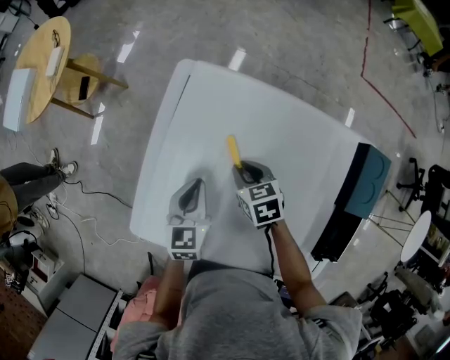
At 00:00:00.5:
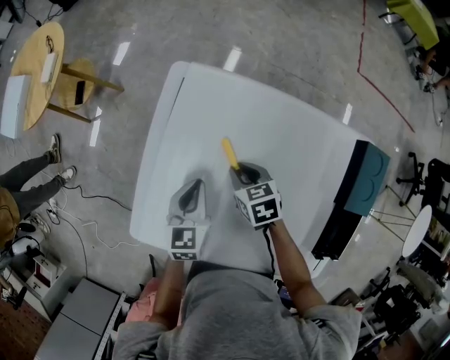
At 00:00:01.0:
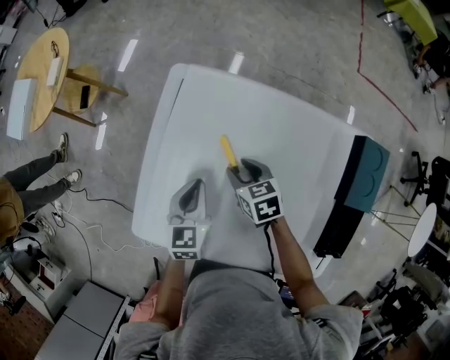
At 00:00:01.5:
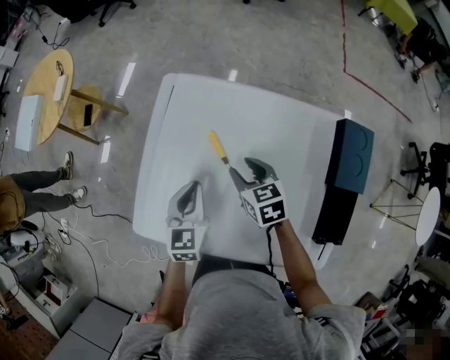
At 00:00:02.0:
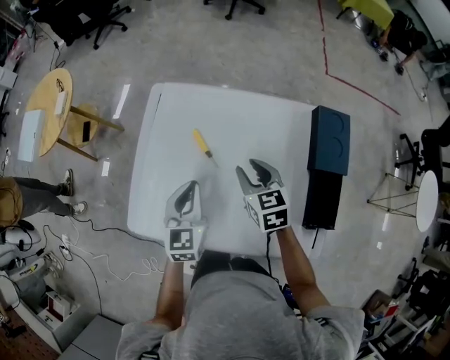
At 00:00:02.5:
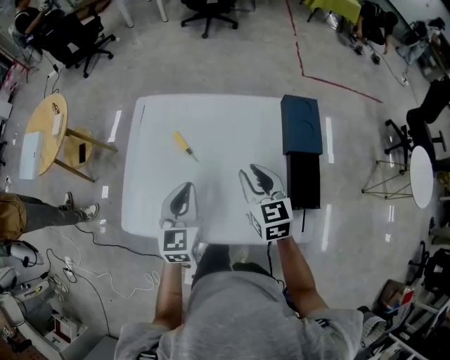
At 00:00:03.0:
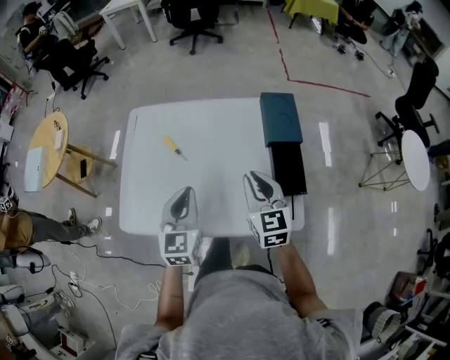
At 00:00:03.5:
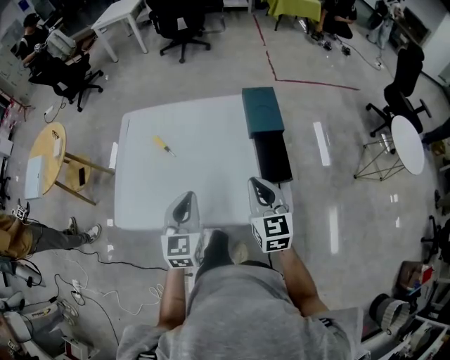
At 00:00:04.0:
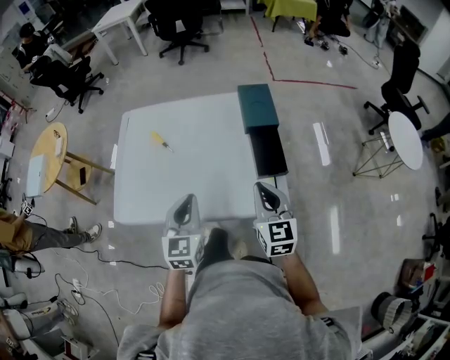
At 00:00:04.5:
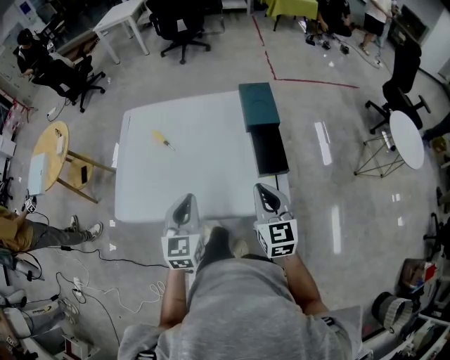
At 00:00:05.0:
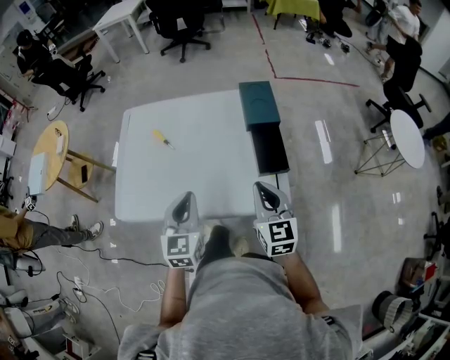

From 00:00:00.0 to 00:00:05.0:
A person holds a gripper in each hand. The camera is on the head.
From 00:00:00.0 to 00:00:02.5: The right gripper heads upward, backward and to the right, covering some 30 cm, and changes its angle by about 40 degrees. The left gripper shifts roughly 25 cm backward, upward and to the right, and rotates about 20 degrees.
From 00:00:02.5 to 00:00:05.0: The two grippers go some 20 cm backward and to the right. The right gripper closes.

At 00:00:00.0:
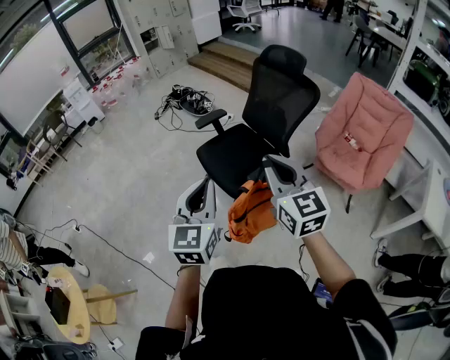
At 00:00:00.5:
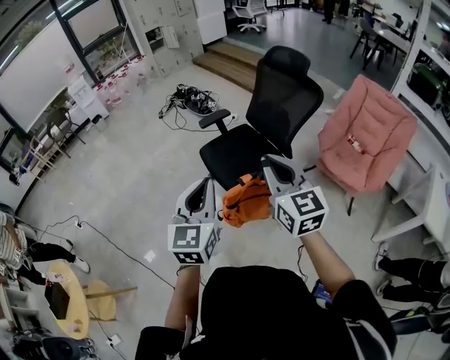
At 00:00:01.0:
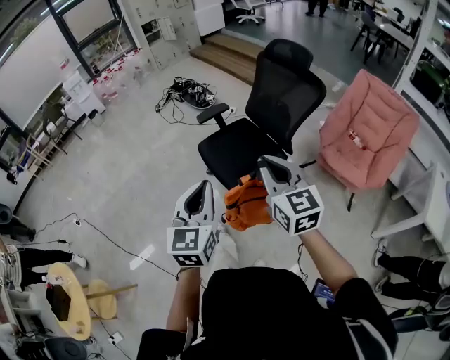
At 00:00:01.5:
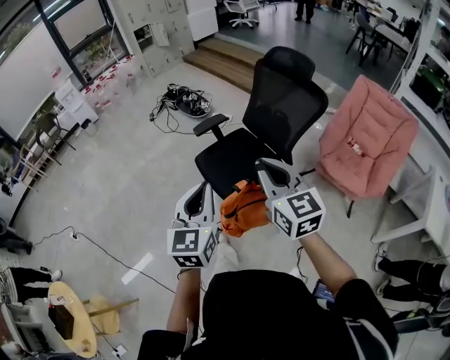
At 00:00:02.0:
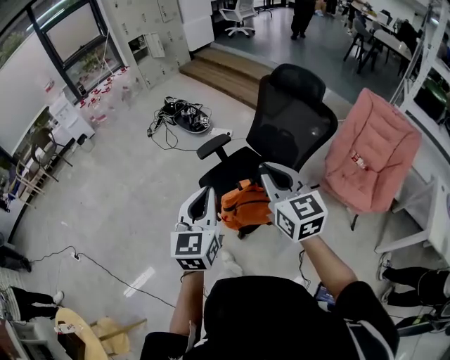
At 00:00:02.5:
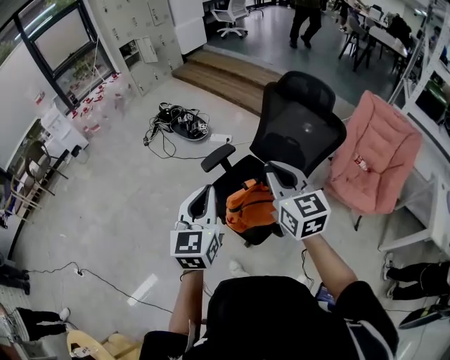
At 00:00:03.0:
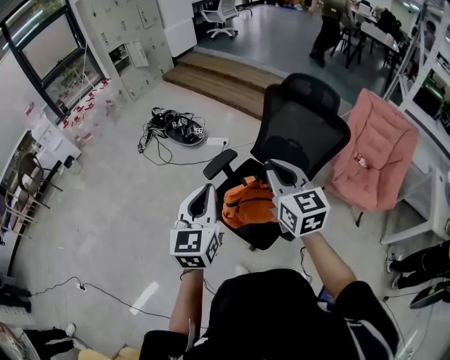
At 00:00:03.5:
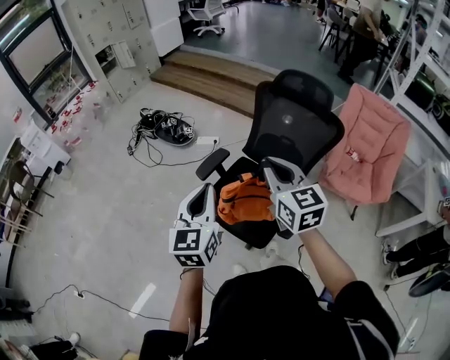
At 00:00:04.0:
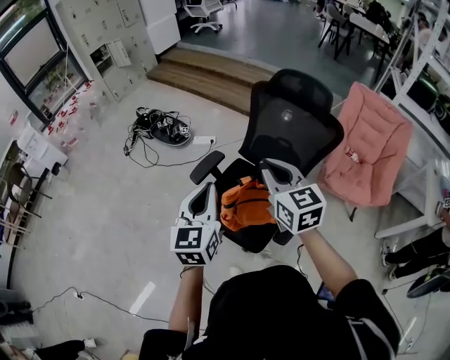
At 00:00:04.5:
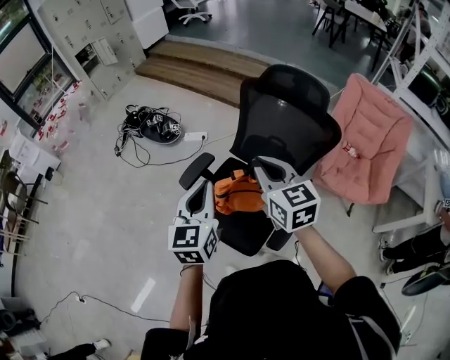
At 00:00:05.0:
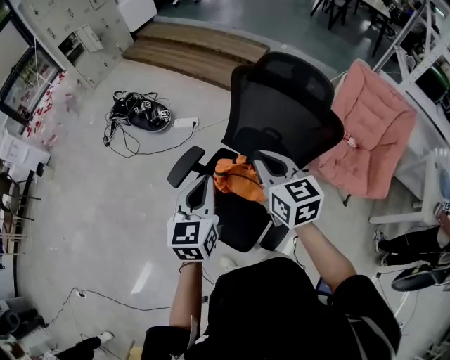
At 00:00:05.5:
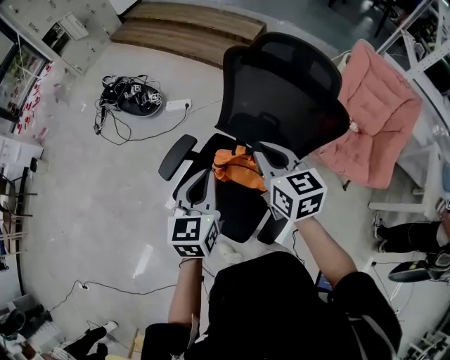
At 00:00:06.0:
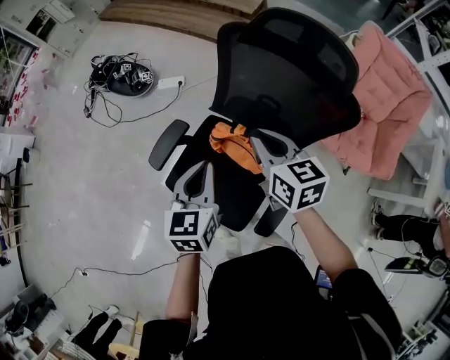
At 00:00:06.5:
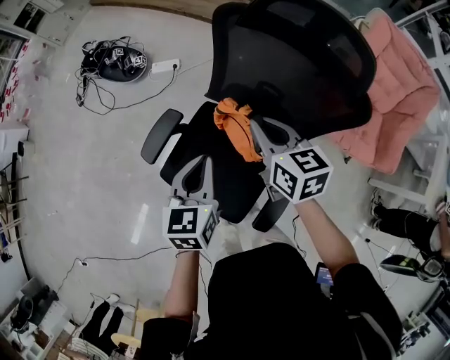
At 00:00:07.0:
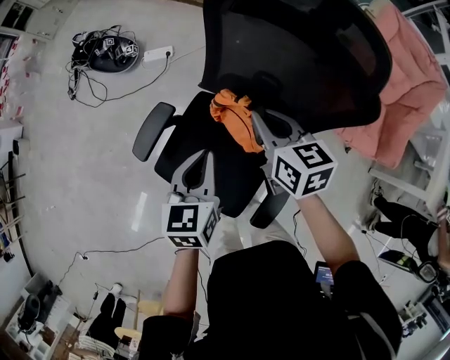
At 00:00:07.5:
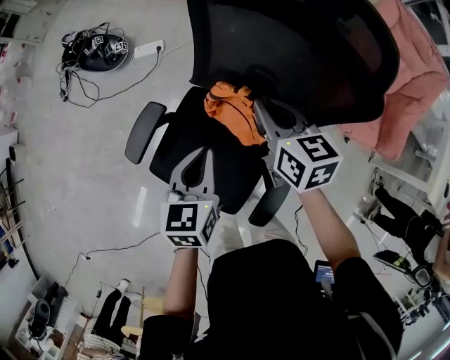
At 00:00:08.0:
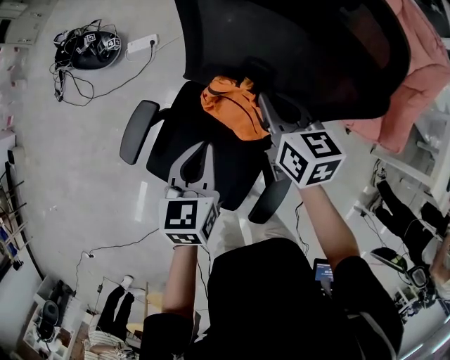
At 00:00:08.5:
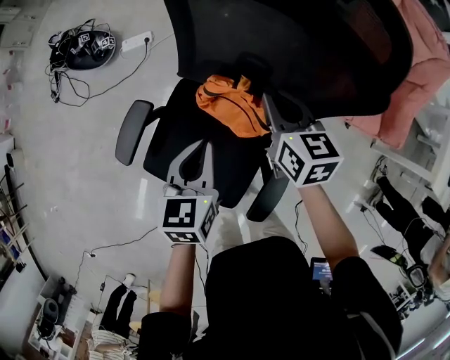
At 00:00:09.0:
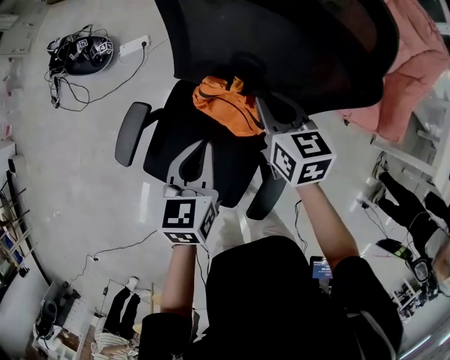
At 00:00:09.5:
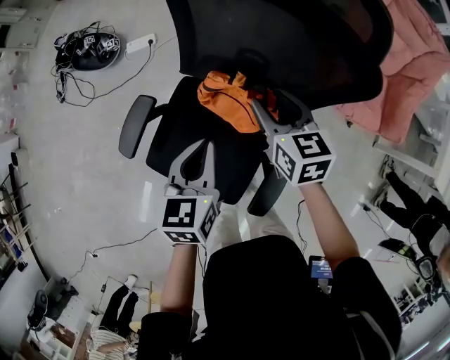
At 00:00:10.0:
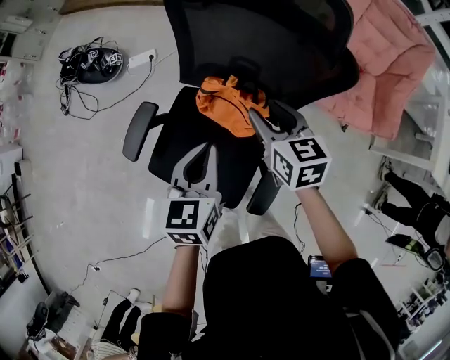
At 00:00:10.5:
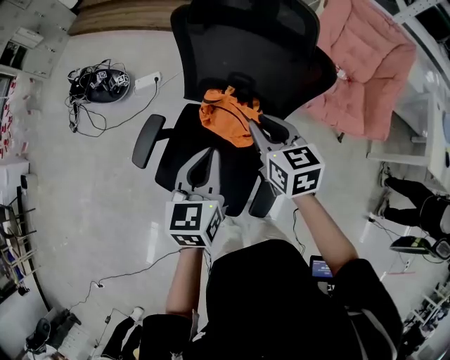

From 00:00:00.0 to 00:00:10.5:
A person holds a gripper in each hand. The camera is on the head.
From 00:00:00.0 to 00:00:02.0: Both grippers travel together forward, roughly 25 cm.
From 00:00:02.0 to 00:00:04.0: The grippers both shift forward by some 20 cm.
From 00:00:04.0 to 00:00:06.5: Both grippers travel together forward, downward and to the right, roughly 35 cm. The right gripper turns by approximately 30 degrees. Meanwhile the left gripper swivels some 20 degrees.
From 00:00:06.5 to 00:00:08.5: The left gripper travels downward and to the right by approximately 10 cm; the right gripper is displaced downward, to the right and forward by approximately 15 cm.
From 00:00:08.5 to 00:00:10.5: The right gripper shifts about 15 cm backward and upward, and opens and closes again. Meanwhile the left gripper heads upward and backward, covering about 15 cm.

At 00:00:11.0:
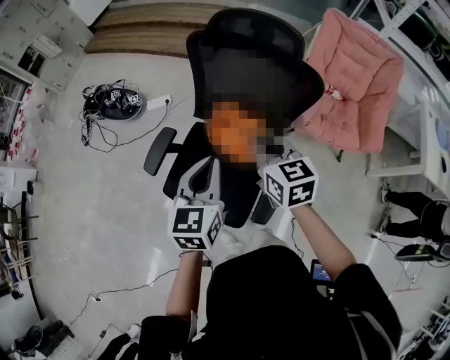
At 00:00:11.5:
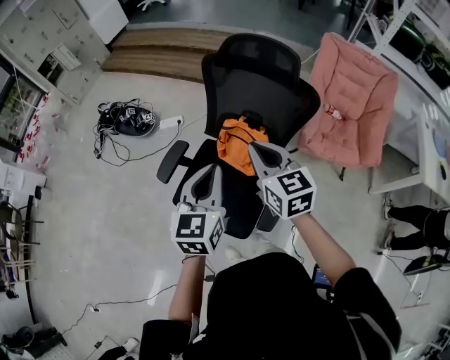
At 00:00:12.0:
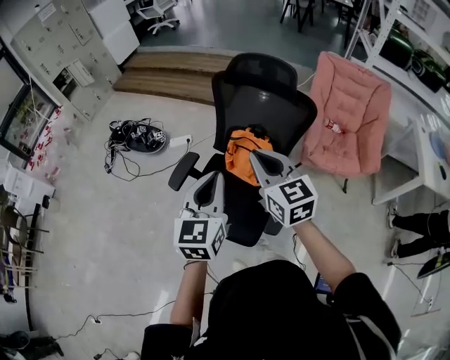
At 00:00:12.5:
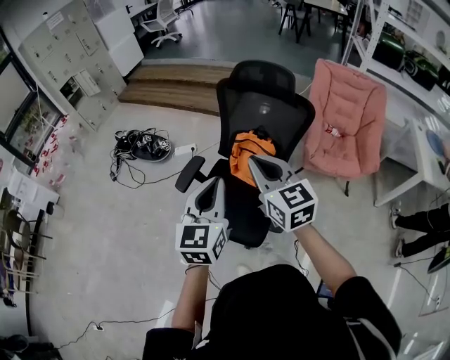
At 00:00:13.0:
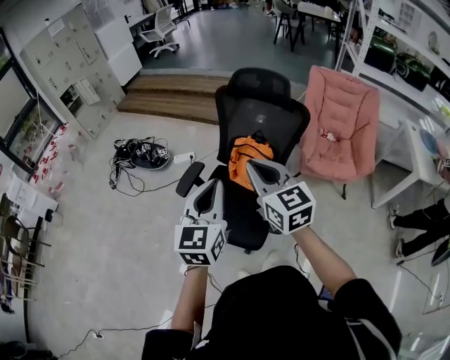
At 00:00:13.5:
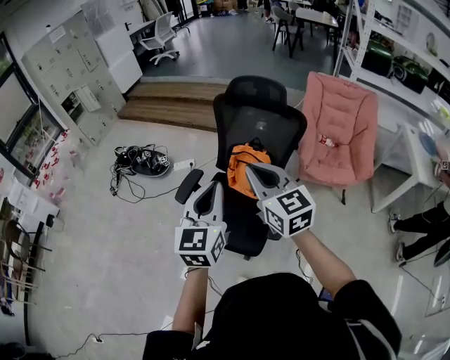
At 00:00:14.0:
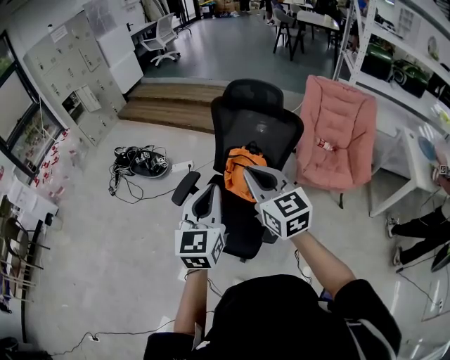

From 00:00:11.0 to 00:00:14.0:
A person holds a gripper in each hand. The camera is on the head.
From 00:00:11.0 to 00:00:12.5: Both grippers move backward, upward and to the left, roughly 25 cm. The right gripper turns by about 20 degrees.
From 00:00:12.5 to 00:00:14.0: The grippers make only small movements.

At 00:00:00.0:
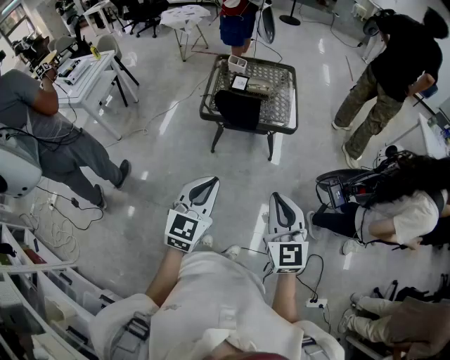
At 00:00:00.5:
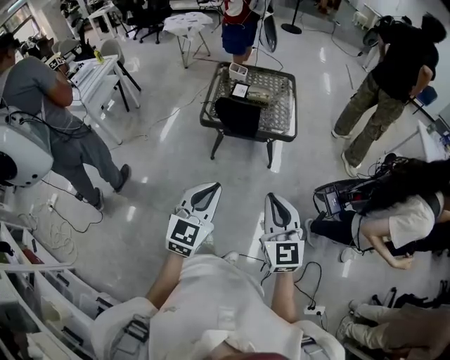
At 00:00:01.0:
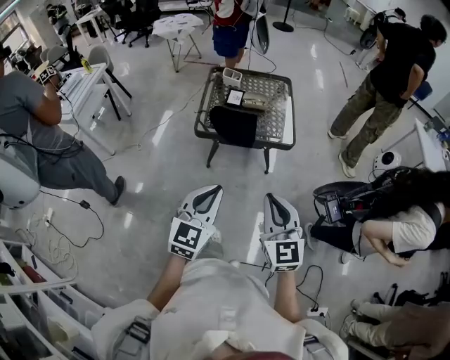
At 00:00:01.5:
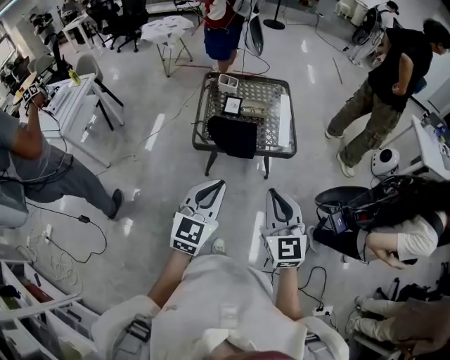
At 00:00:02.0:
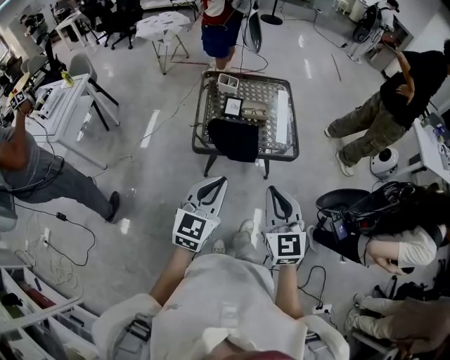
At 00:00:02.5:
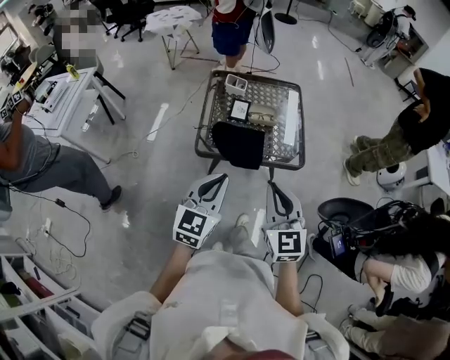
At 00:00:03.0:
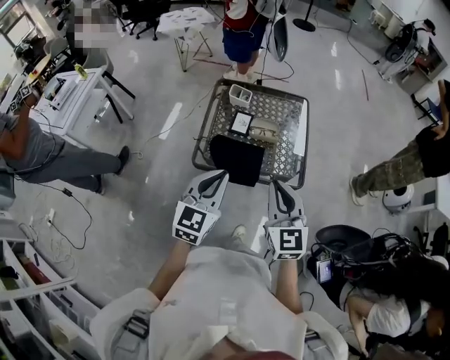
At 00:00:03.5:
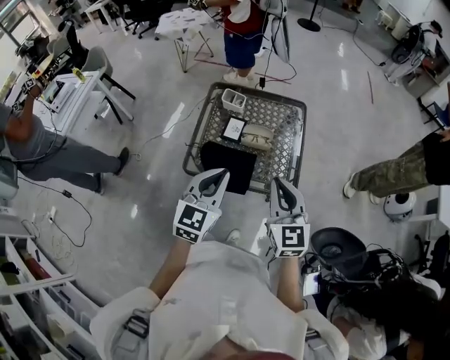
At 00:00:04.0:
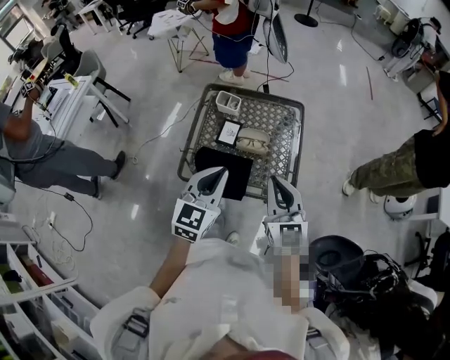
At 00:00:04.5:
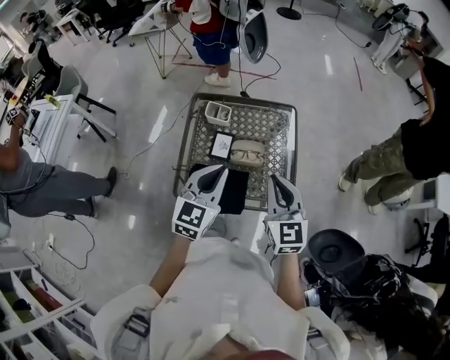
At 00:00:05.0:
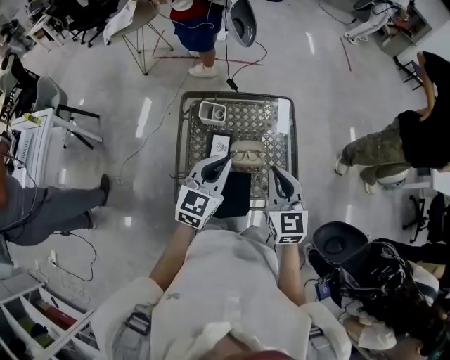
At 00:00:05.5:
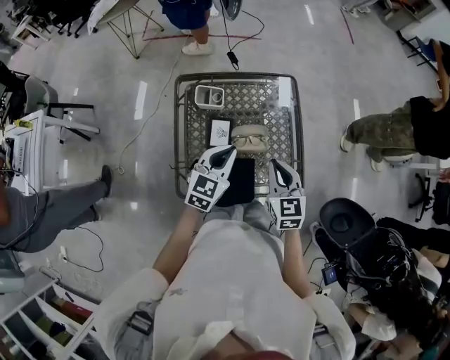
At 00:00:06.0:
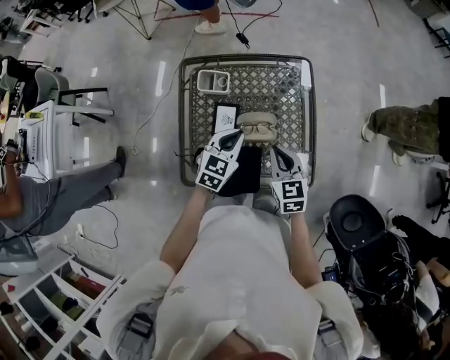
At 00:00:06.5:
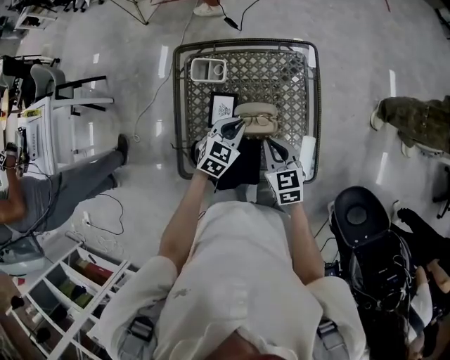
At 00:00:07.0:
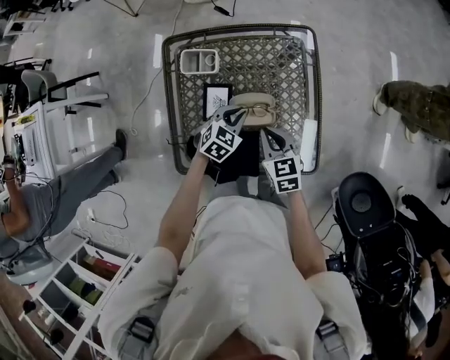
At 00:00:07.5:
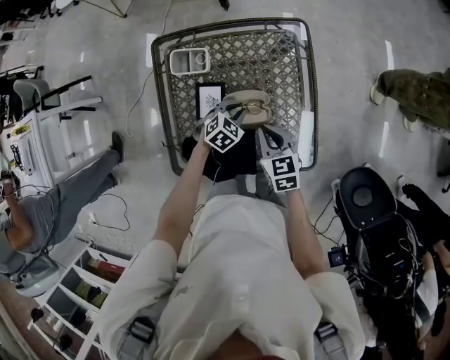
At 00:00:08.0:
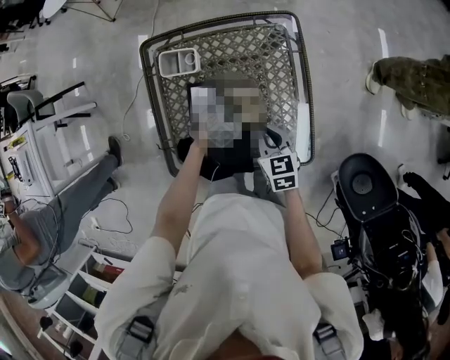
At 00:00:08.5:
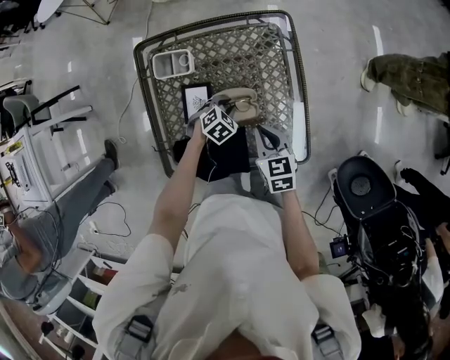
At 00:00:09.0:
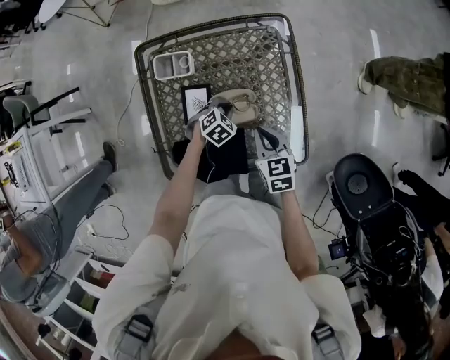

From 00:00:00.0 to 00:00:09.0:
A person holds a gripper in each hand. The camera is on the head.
From 00:00:00.0 to 00:00:02.0: Both grippers travel together forward, some 20 cm.
From 00:00:02.0 to 00:00:04.5: Both grippers travel together forward, some 35 cm.
From 00:00:04.5 to 00:00:07.0: The right gripper heads downward, covering roughly 30 cm, and rotates about 30 degrees. The left gripper travels downward and forward by approximately 40 cm, and angles its fingers downward, by approximately 40 degrees.
From 00:00:07.0 to 00:00:09.0: The left gripper heads downward, covering roughly 10 cm.
